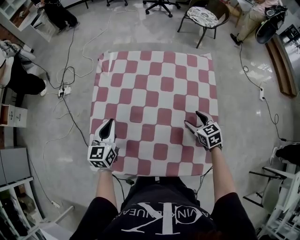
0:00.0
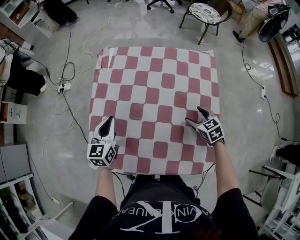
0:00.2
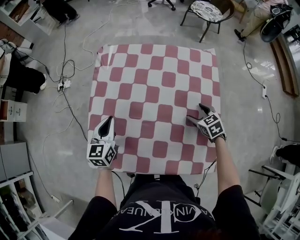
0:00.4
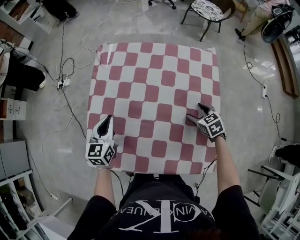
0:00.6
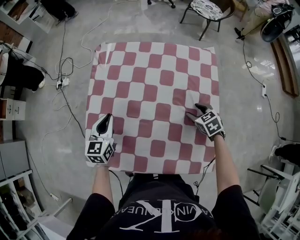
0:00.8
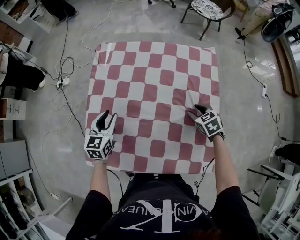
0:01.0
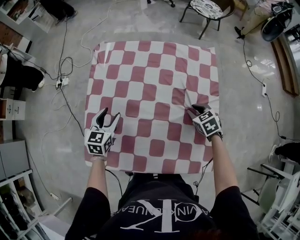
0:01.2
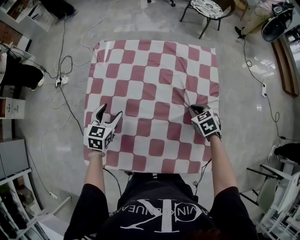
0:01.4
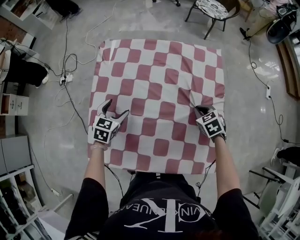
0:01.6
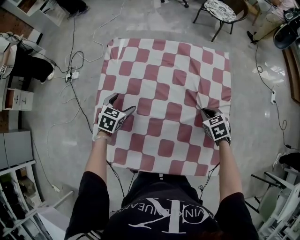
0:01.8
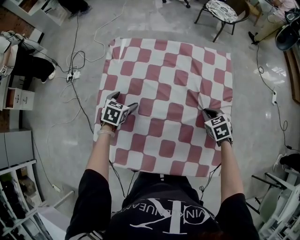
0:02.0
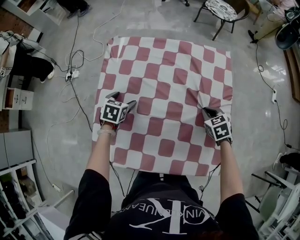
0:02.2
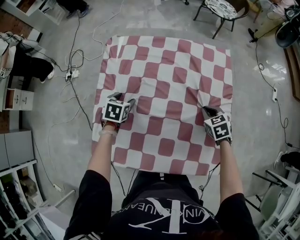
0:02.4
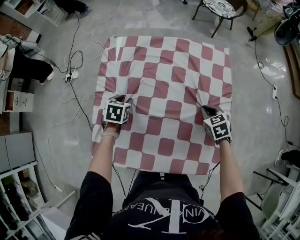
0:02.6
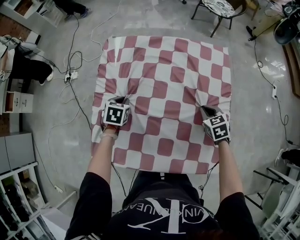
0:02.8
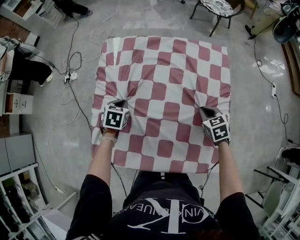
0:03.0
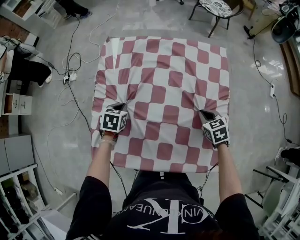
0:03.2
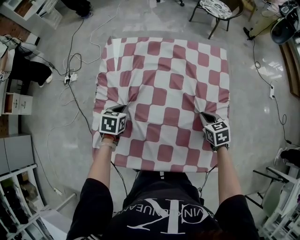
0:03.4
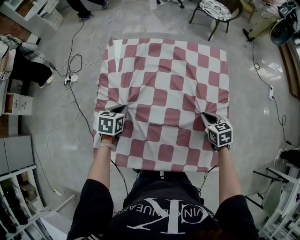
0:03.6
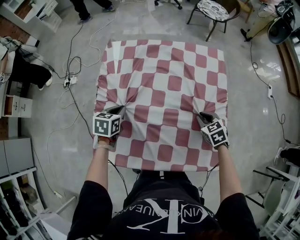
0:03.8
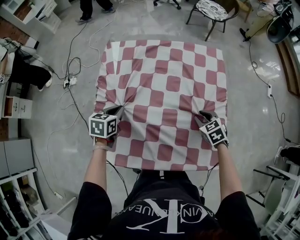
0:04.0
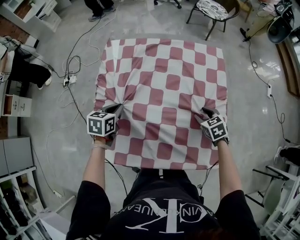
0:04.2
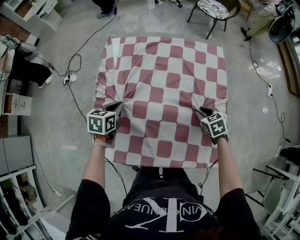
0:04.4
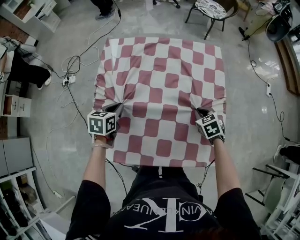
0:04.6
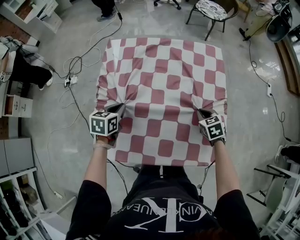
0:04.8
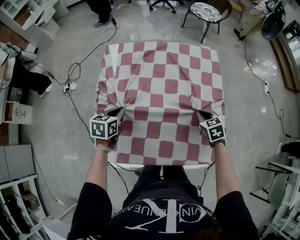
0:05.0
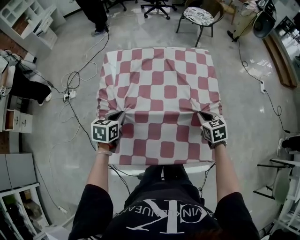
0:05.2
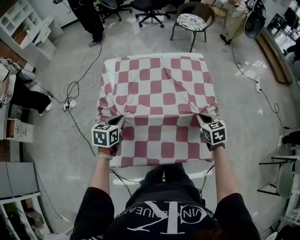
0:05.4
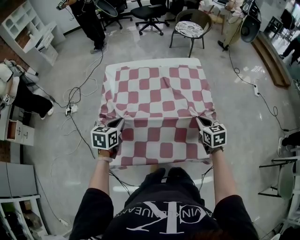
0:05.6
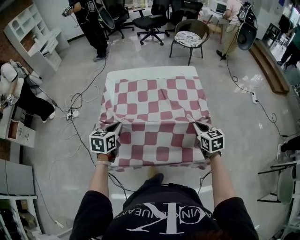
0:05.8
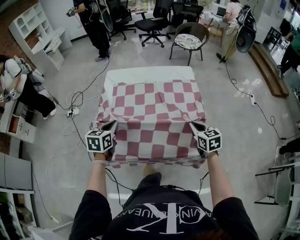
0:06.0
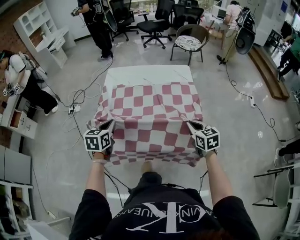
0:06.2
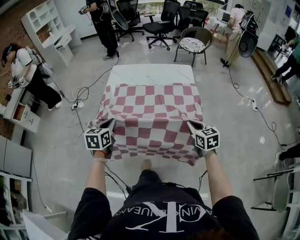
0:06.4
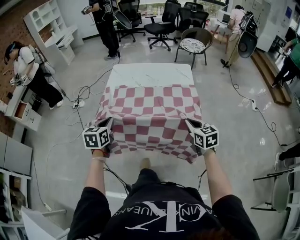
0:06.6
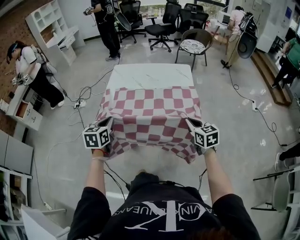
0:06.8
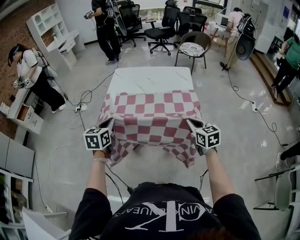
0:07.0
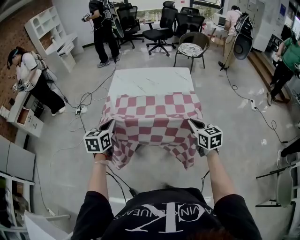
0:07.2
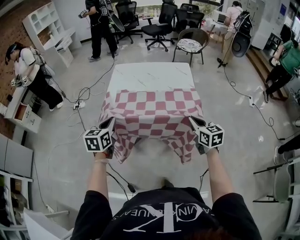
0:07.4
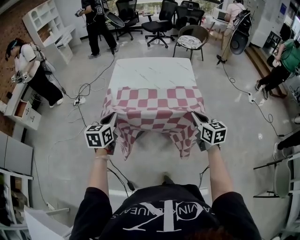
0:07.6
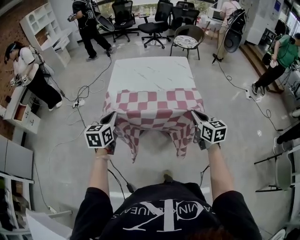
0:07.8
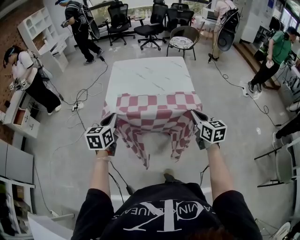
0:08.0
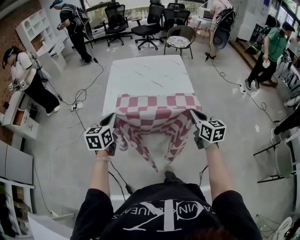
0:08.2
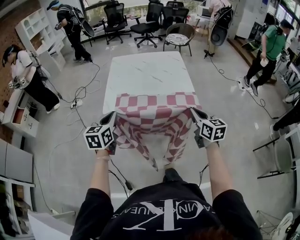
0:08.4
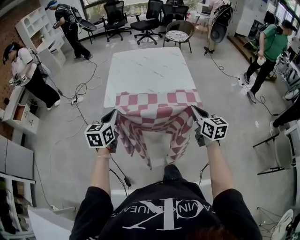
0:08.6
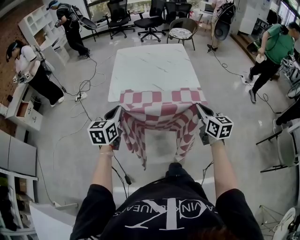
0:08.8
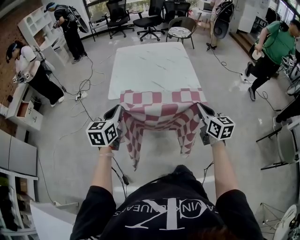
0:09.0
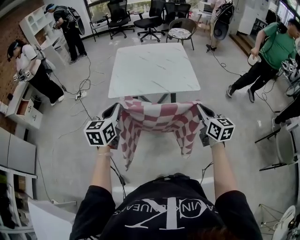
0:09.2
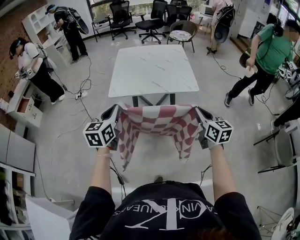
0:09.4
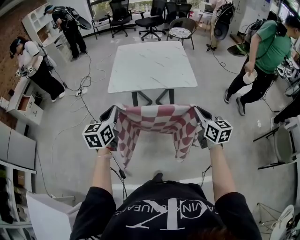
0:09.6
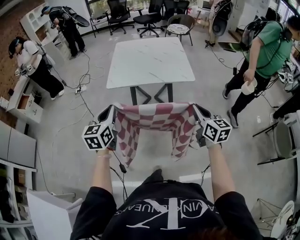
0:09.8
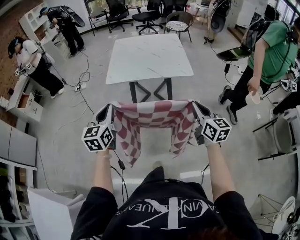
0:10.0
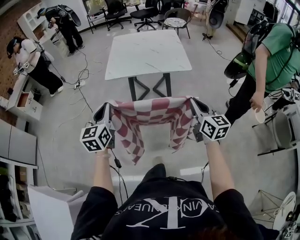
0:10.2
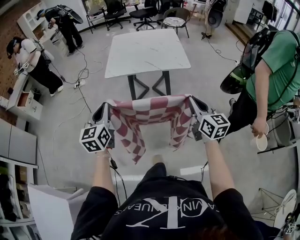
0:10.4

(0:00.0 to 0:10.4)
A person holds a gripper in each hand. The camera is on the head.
0:00.0 - 0:01.4: The right gripper closes up, while the left gripper travels downward by about 5 cm, turns by some 20 degrees, and opens up.
0:01.4 - 0:03.0: The left gripper goes roughly 5 cm downward, swivels some 20 degrees, and closes.
0:03.0 - 0:04.4: The right gripper opens; the left gripper goes approximately 5 cm upward.
0:04.4 - 0:06.0: The two grippers go approximately 20 cm backward and upward. The right gripper swivels roughly 30 degrees.
0:06.0 - 0:07.4: Both grippers travel together backward and upward, roughly 15 cm.
0:07.4 - 0:09.0: Both grippers travel together backward, approximately 25 cm.
0:09.0 - 0:10.4: Both grippers travel together backward, approximately 15 cm.

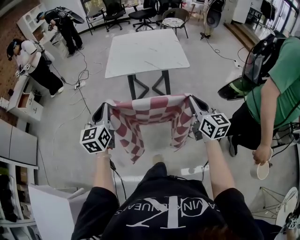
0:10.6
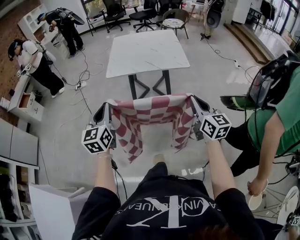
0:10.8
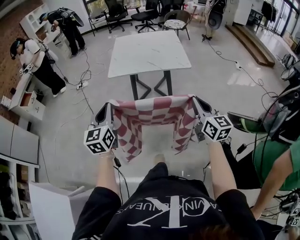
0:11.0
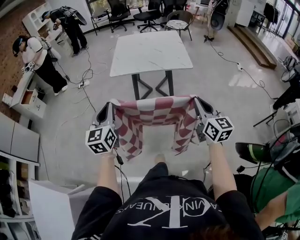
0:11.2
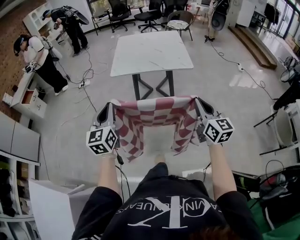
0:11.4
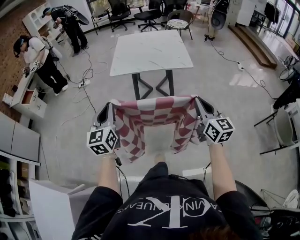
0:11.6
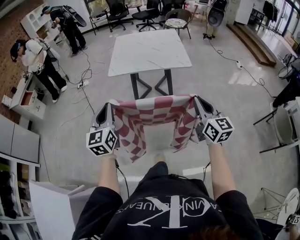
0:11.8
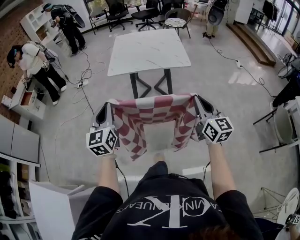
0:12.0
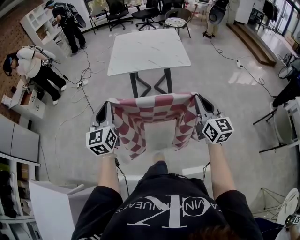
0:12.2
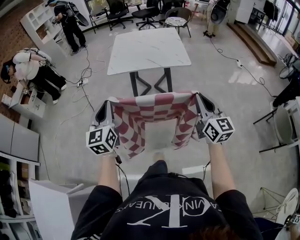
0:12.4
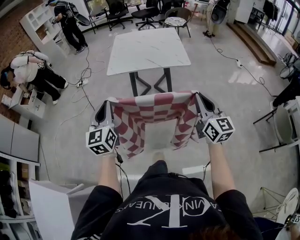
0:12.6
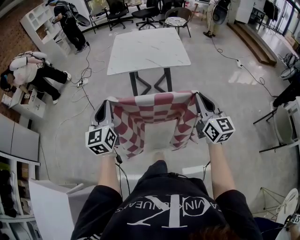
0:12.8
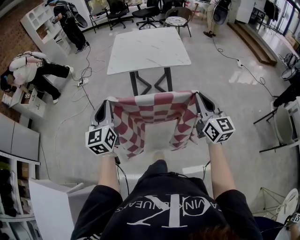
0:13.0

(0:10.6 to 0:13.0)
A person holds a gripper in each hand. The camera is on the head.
0:10.6 - 0:13.0: The grippers make only small movements.

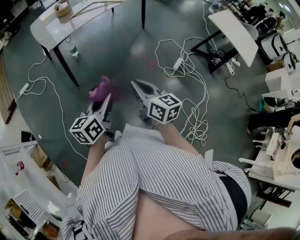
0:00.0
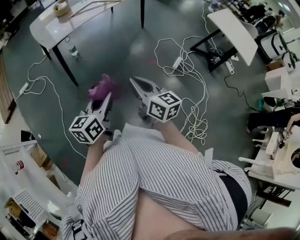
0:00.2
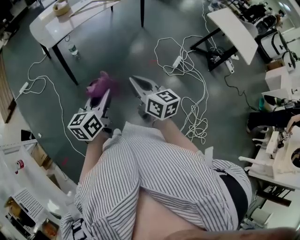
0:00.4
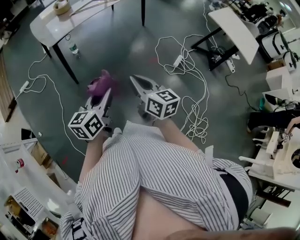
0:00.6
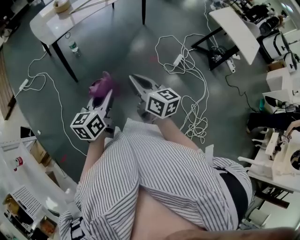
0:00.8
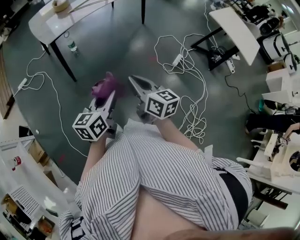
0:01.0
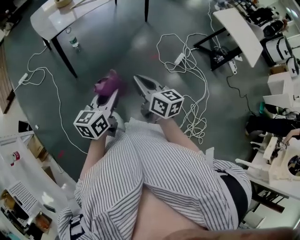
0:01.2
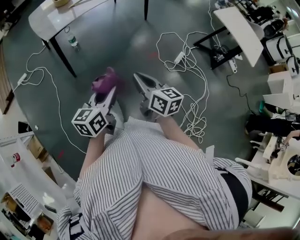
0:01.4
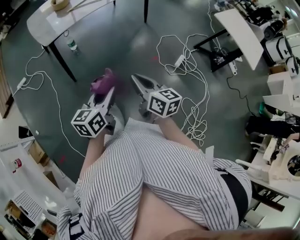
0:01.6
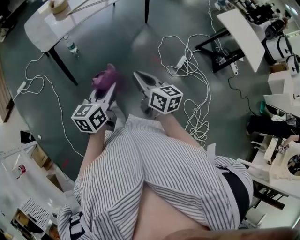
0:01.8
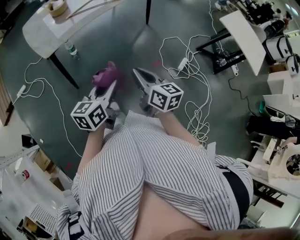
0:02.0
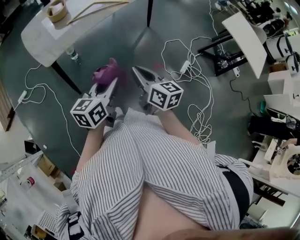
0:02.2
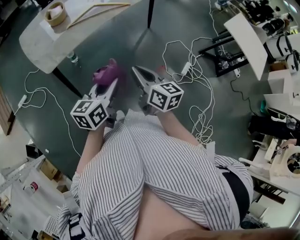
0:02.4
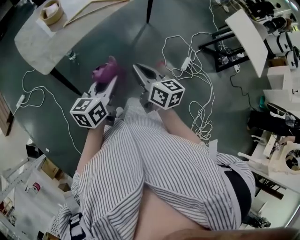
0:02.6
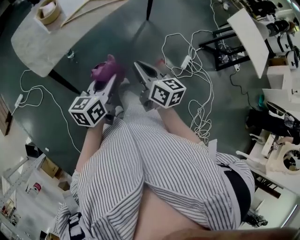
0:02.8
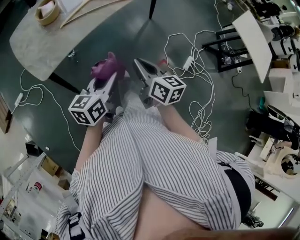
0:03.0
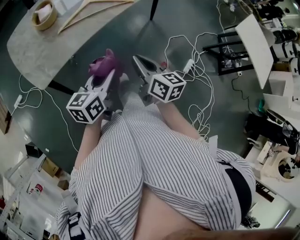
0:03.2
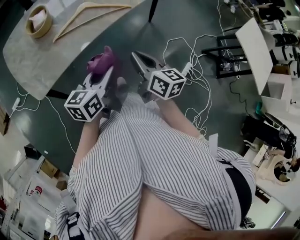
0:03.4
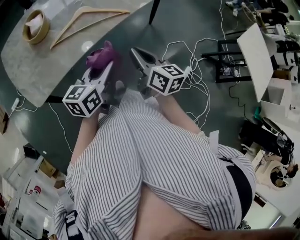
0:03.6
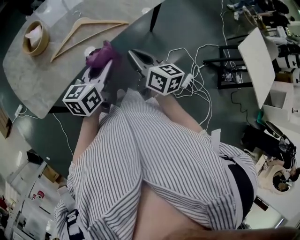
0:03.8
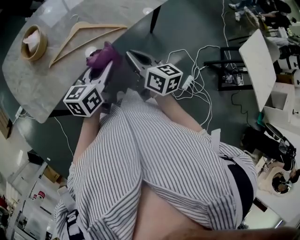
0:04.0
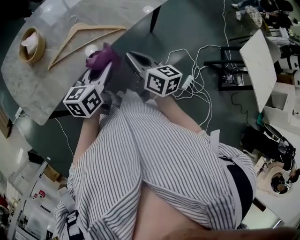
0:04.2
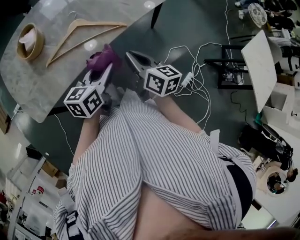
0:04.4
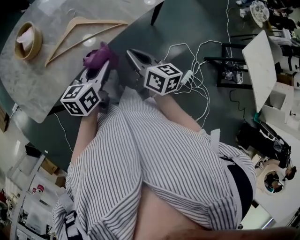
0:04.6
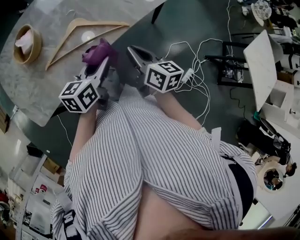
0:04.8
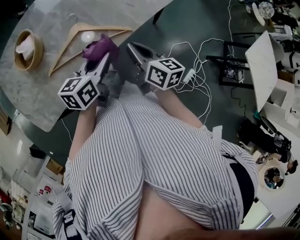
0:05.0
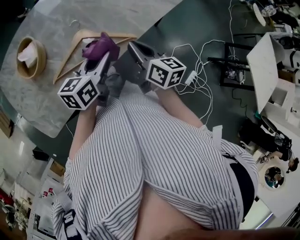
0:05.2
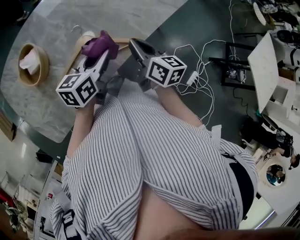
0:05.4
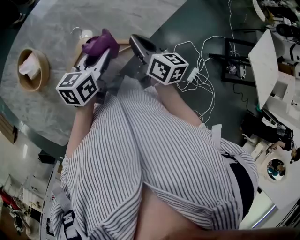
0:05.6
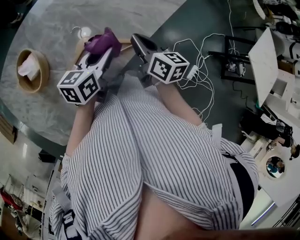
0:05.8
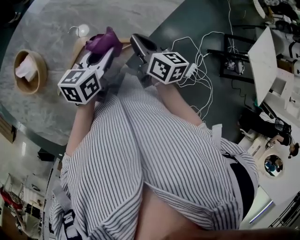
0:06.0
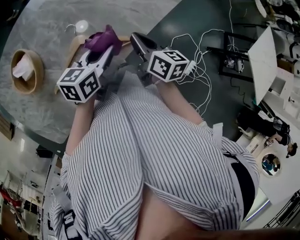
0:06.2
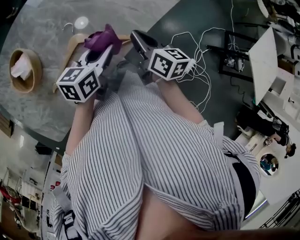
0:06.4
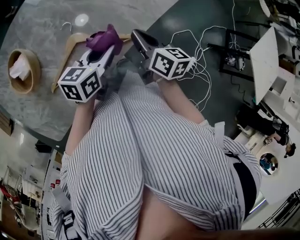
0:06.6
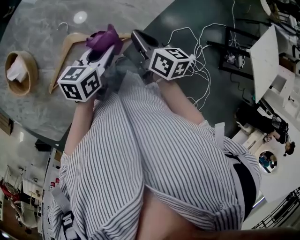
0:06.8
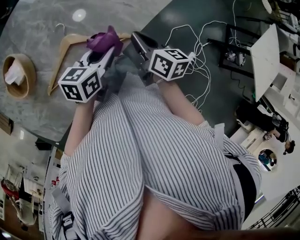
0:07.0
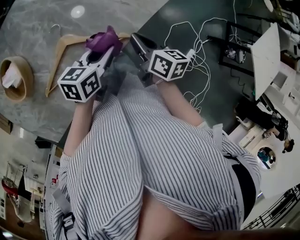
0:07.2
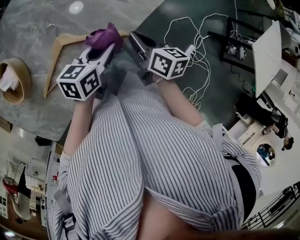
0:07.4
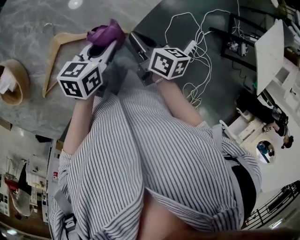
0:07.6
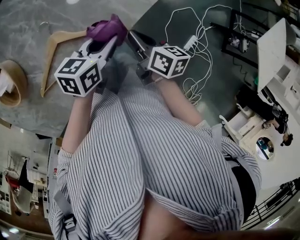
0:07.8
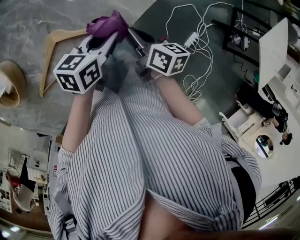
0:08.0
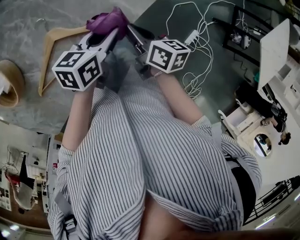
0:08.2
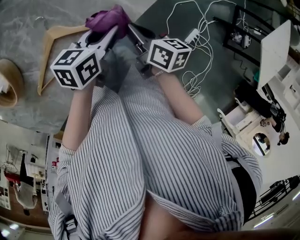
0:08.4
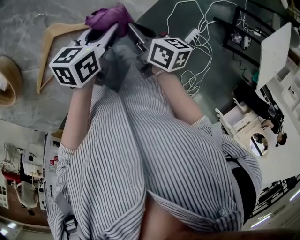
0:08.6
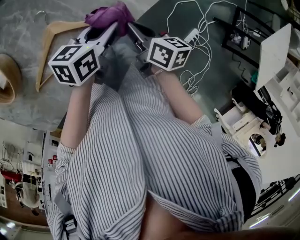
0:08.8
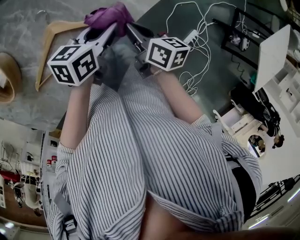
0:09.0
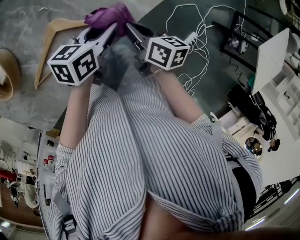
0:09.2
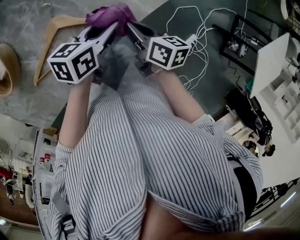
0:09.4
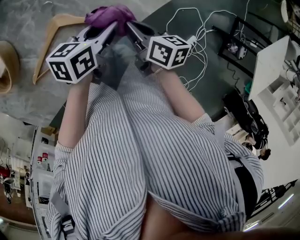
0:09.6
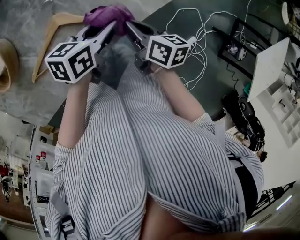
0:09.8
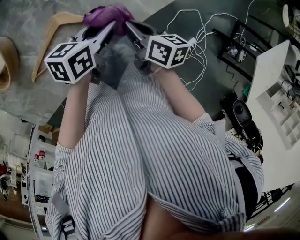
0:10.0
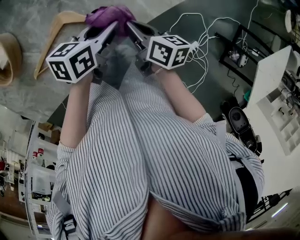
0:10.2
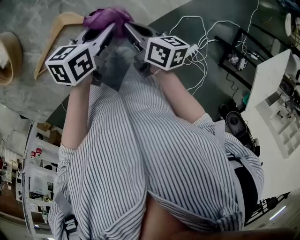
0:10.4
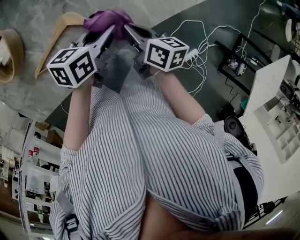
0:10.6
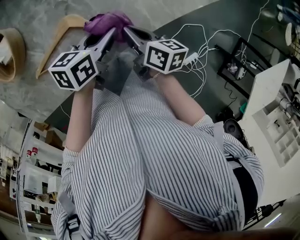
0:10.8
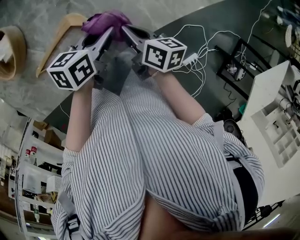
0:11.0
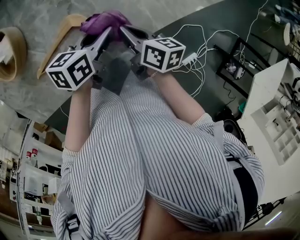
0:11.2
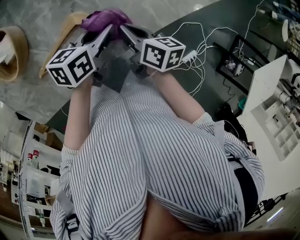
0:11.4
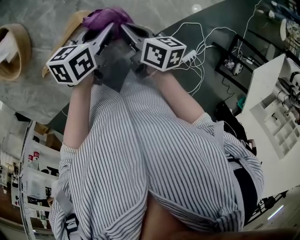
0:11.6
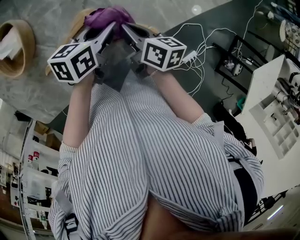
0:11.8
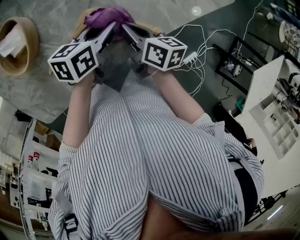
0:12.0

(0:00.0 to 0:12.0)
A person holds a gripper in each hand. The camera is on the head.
0:00.0 - 0:01.6: Both grippers move forward, about 5 cm.
0:01.6 - 0:03.0: The grippers both shift forward by approximately 35 cm.
0:03.0 - 0:04.4: Both grippers travel together forward, some 30 cm.
0:04.4 - 0:06.0: Both grippers travel together forward, about 20 cm.
0:06.0 - 0:07.6: The left gripper moves to the right and downward, about 10 cm, while the right gripper shifts about 10 cm downward and to the right.
0:07.6 - 0:09.0: There are only small adjustments of the grippers.
0:09.0 - 0:10.4: The grippers stay close to where they were, moving slightly.
0:10.4 - 0:12.0: The two grippers go approximately 10 cm to the left.
